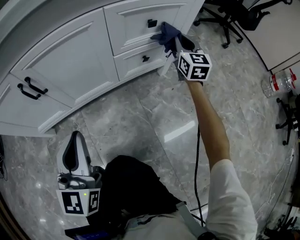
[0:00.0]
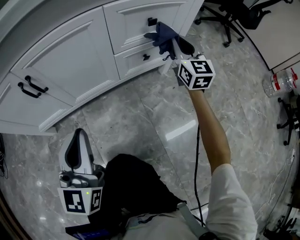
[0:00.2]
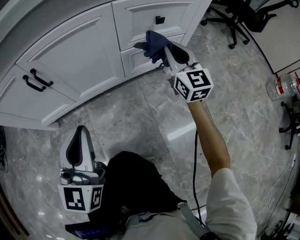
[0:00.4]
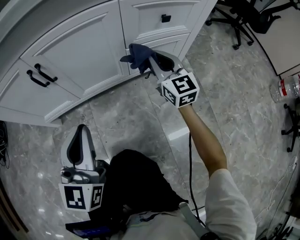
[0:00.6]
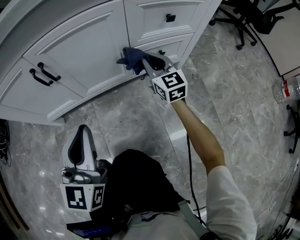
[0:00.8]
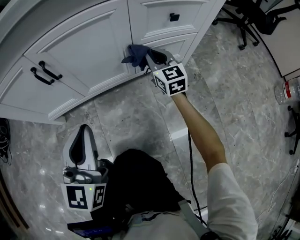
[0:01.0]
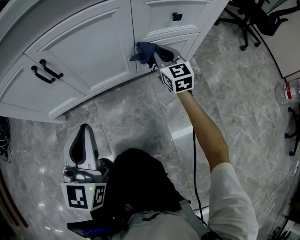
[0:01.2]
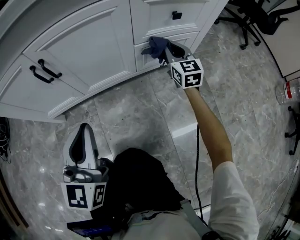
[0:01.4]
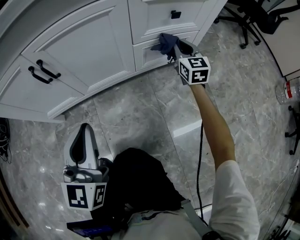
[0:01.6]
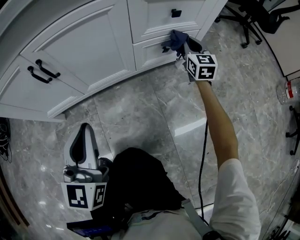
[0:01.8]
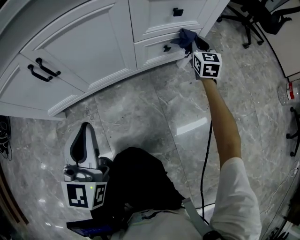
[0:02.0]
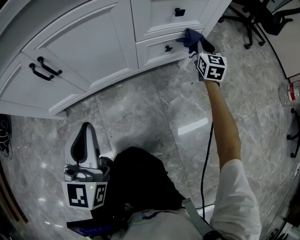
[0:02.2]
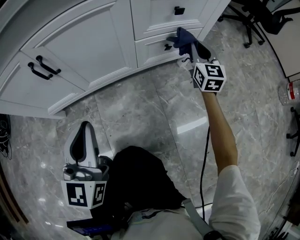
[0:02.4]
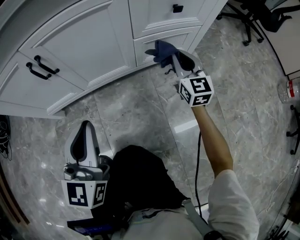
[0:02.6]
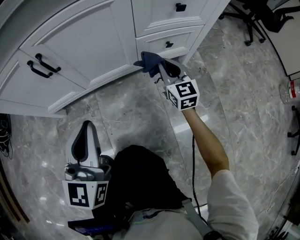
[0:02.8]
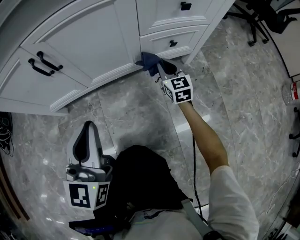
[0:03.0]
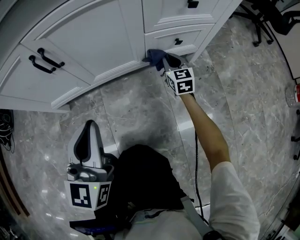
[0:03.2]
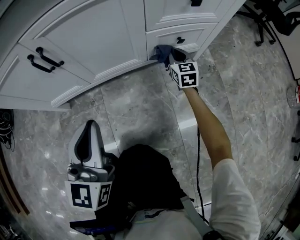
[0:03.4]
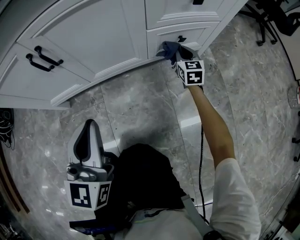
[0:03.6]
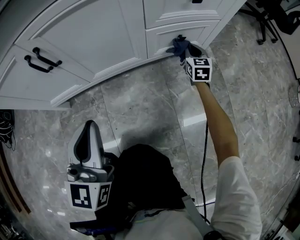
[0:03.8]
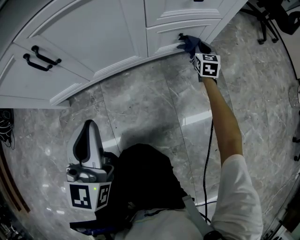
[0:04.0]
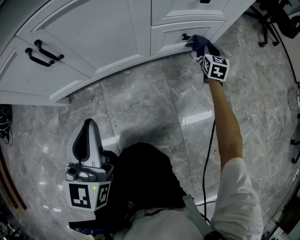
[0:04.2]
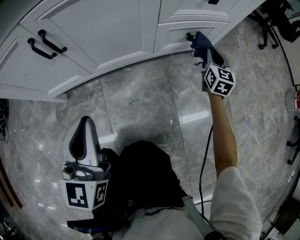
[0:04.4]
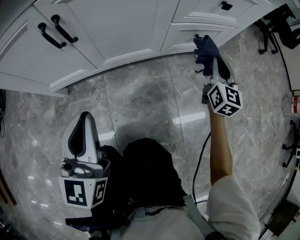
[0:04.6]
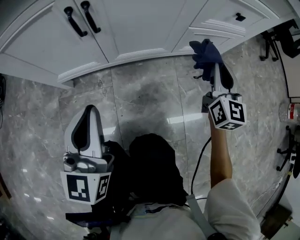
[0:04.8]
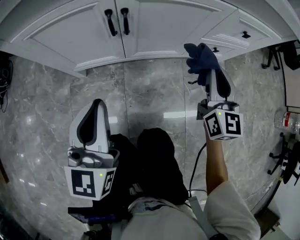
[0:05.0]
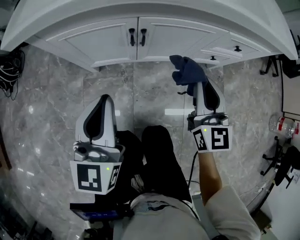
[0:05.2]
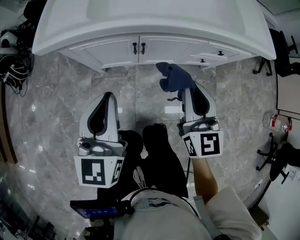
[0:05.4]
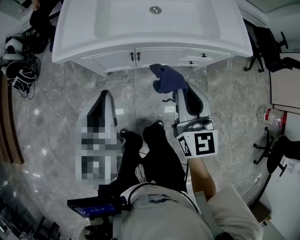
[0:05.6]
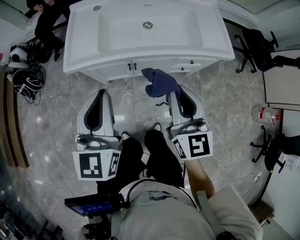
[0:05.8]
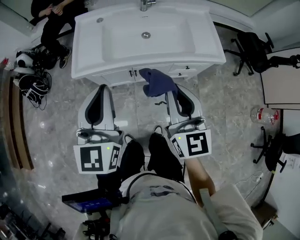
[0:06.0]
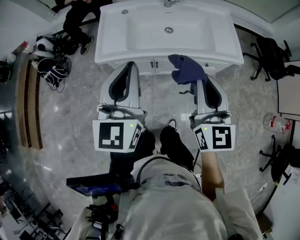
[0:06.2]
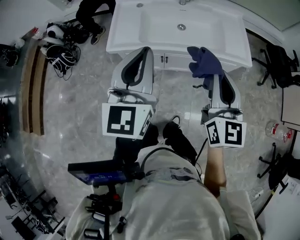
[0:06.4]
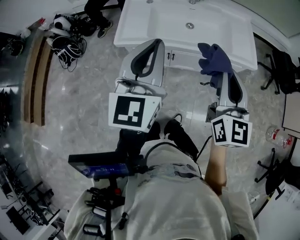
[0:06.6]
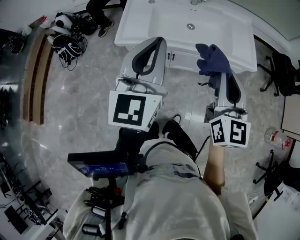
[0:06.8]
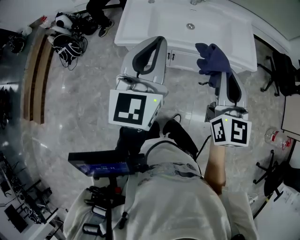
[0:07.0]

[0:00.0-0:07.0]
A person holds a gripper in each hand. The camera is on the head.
0:00.0 to 0:01.4: The right gripper goes about 15 cm to the left and downward.
0:01.4 to 0:02.8: The right gripper shifts some 10 cm backward and downward, and moves some 15 cm to the right and comes back.
0:02.8 to 0:04.2: The right gripper is displaced to the right, forward and downward by approximately 20 cm, and rotates some 30 degrees.
0:04.2 to 0:05.6: The left gripper shifts some 50 cm upward, while the right gripper shifts approximately 80 cm upward, to the left and backward, and changes its angle by some 30 degrees.
0:05.6 to 0:07.0: The grippers both shift upward by roughly 25 cm.

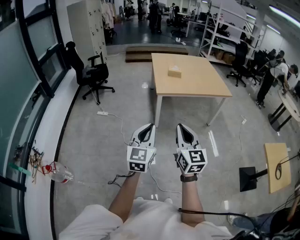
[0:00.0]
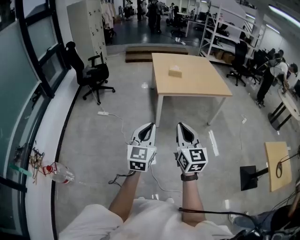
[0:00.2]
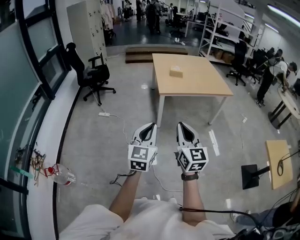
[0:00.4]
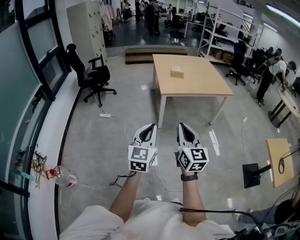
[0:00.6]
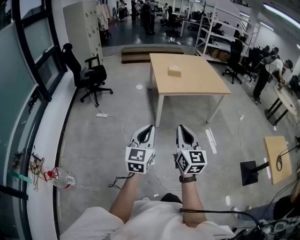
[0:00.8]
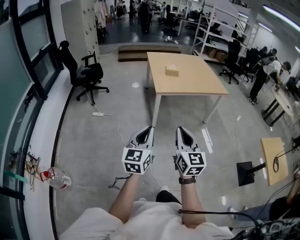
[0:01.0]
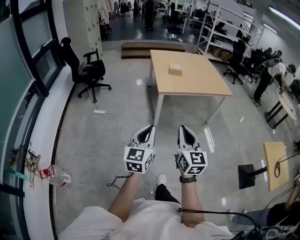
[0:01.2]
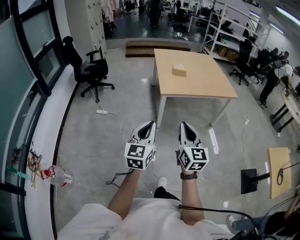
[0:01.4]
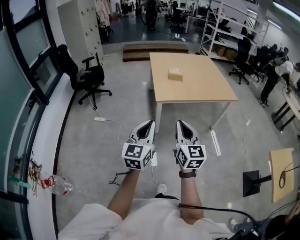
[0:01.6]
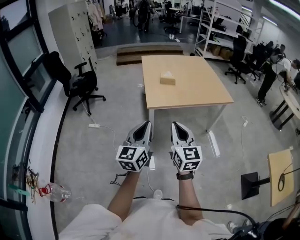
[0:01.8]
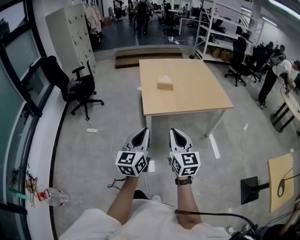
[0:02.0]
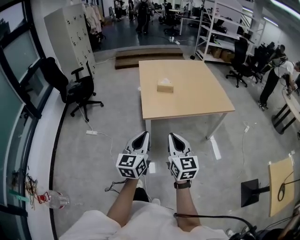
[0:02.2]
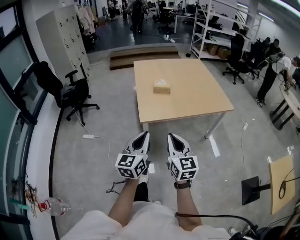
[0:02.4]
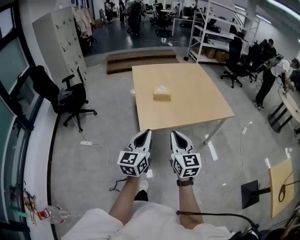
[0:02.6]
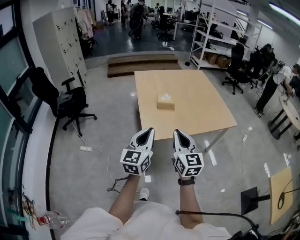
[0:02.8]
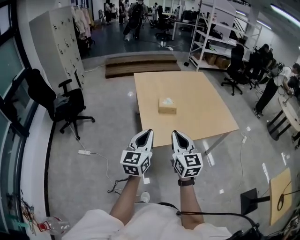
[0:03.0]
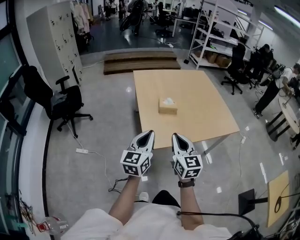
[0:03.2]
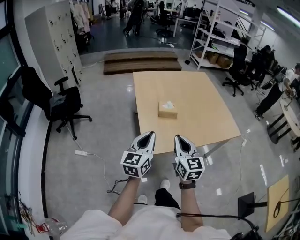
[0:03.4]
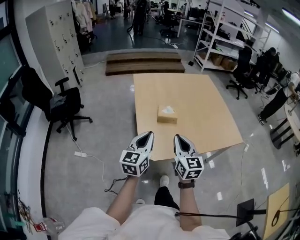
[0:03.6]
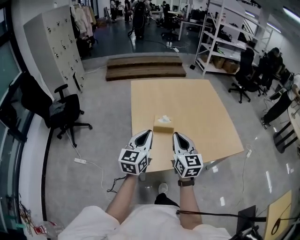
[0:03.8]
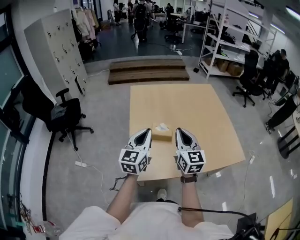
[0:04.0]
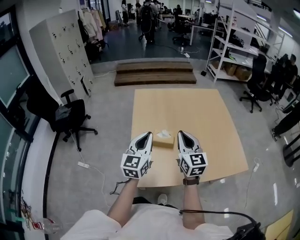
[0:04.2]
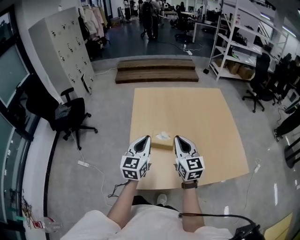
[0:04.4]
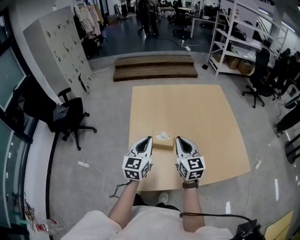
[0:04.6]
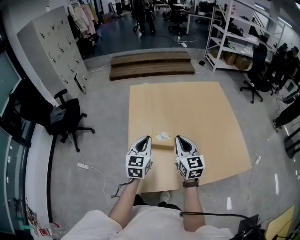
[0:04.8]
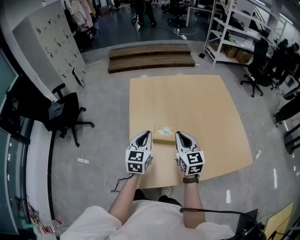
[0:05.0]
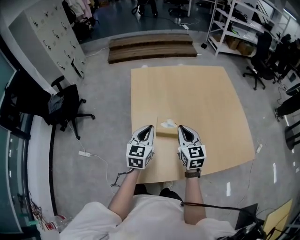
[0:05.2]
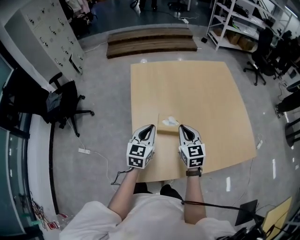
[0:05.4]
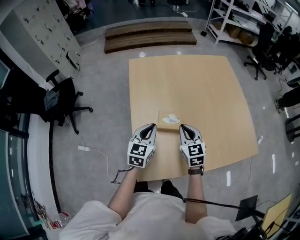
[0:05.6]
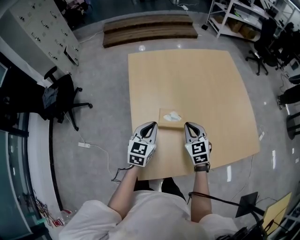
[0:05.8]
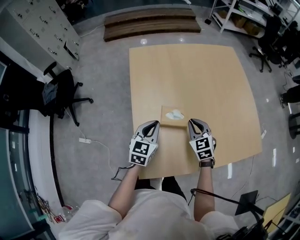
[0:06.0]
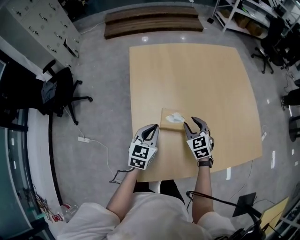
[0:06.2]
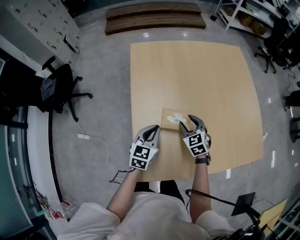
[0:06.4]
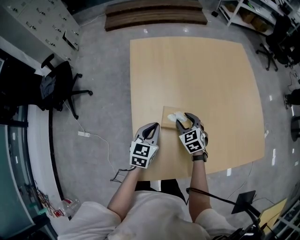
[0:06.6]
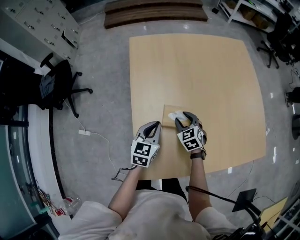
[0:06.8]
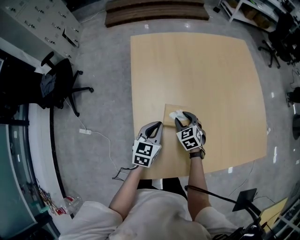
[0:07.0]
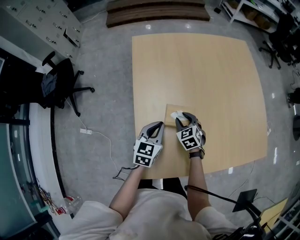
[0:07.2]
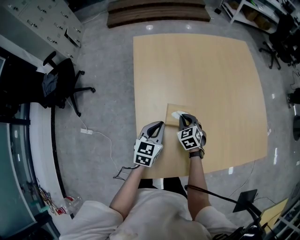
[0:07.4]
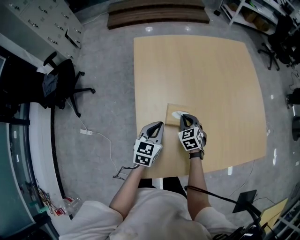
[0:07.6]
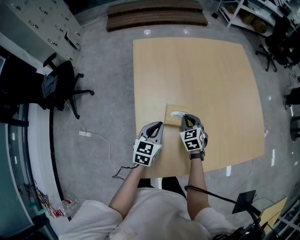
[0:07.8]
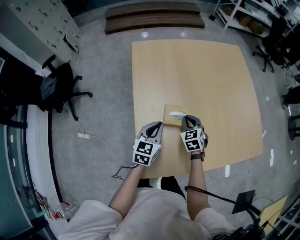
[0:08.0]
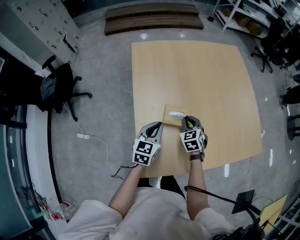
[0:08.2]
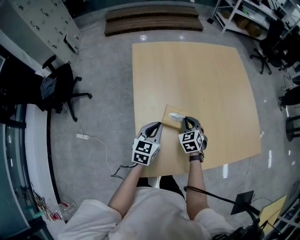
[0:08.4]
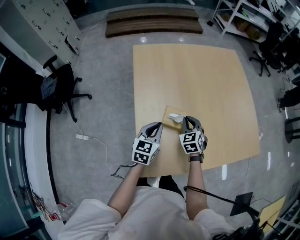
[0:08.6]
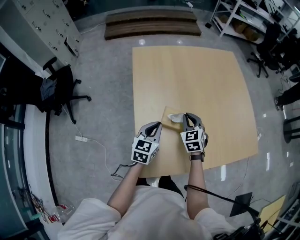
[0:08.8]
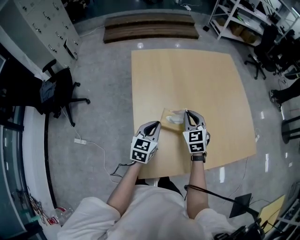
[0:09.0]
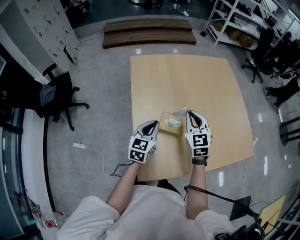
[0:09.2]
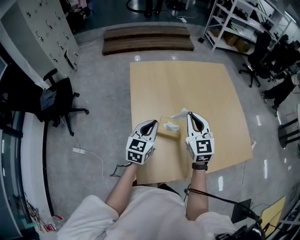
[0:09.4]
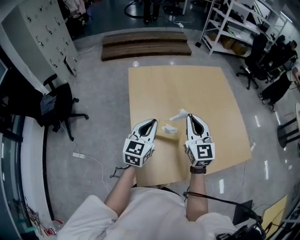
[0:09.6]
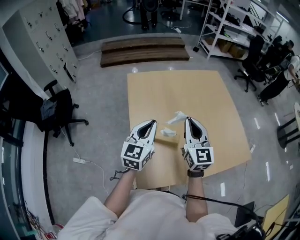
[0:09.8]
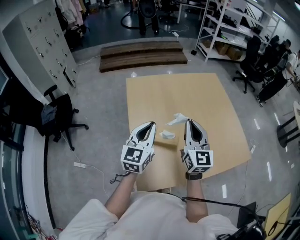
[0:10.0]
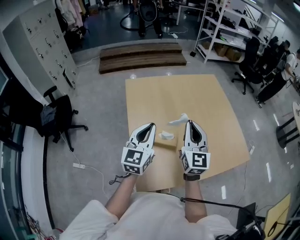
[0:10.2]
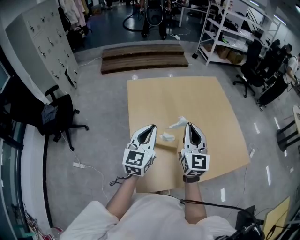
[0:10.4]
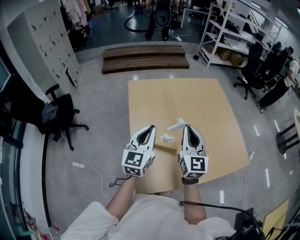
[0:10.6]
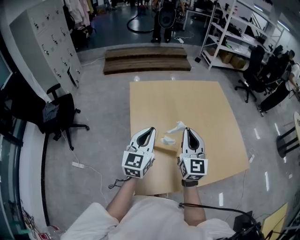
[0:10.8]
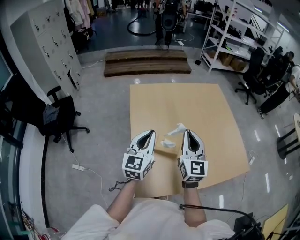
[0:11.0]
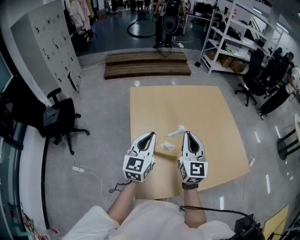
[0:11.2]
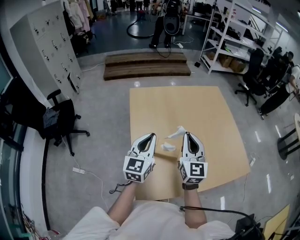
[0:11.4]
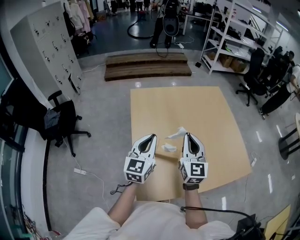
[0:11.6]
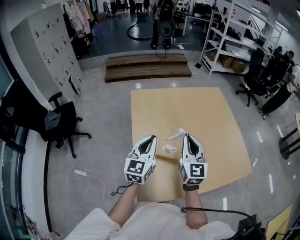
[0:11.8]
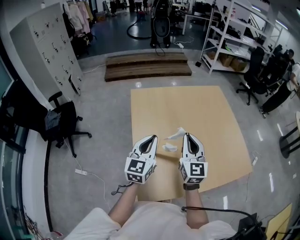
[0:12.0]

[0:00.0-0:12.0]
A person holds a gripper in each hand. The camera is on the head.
0:00.0 to 0:01.6: The two grippers go some 15 cm forward.
0:01.6 to 0:03.0: The grippers both shift forward by approximately 40 cm.
0:03.0 to 0:04.4: The grippers both shift forward by roughly 35 cm.
0:04.4 to 0:06.0: The grippers both shift downward and forward by some 20 cm. The right gripper turns by about 30 degrees; the left gripper changes its angle by approximately 20 degrees.
0:06.0 to 0:07.6: The right gripper travels downward and to the left by some 10 cm, and opens, then closes once more; the left gripper is displaced downward by approximately 5 cm.
0:07.6 to 0:09.0: The left gripper shifts by some 5 cm. The right gripper is displaced upward by roughly 15 cm.
0:09.0 to 0:10.4: The right gripper heads upward and backward, covering some 20 cm, and tilts its fingers some 30 degrees upward, while the left gripper shifts roughly 15 cm upward, and changes its angle by about 20 degrees.
0:10.4 to 0:12.0: The grippers move only a little.

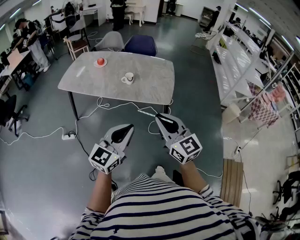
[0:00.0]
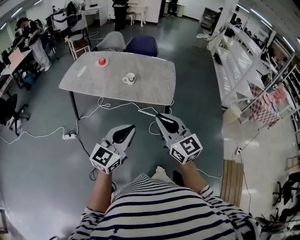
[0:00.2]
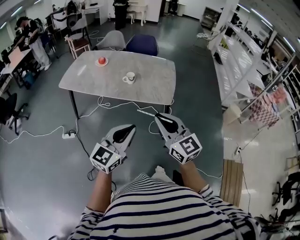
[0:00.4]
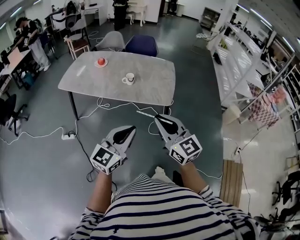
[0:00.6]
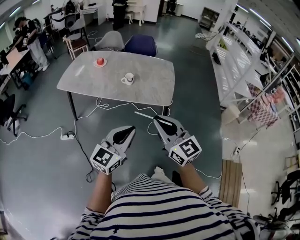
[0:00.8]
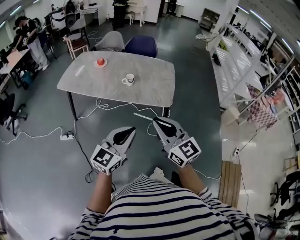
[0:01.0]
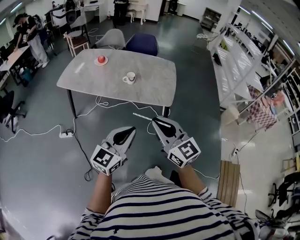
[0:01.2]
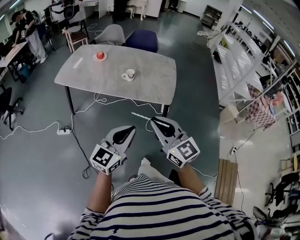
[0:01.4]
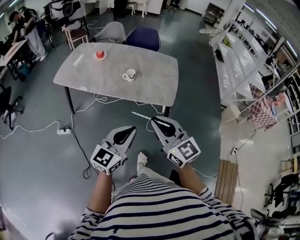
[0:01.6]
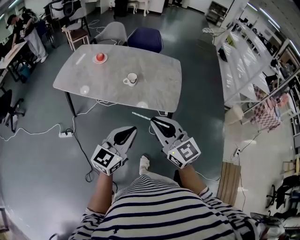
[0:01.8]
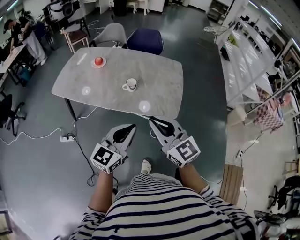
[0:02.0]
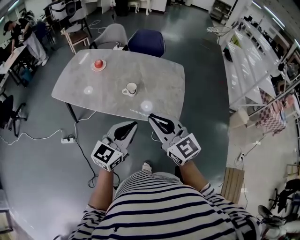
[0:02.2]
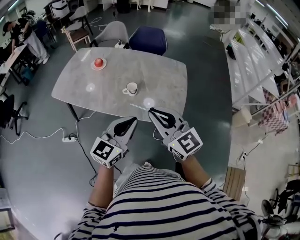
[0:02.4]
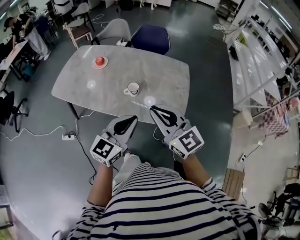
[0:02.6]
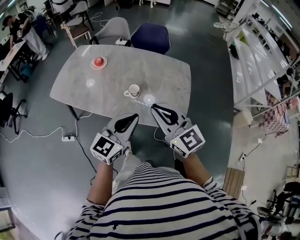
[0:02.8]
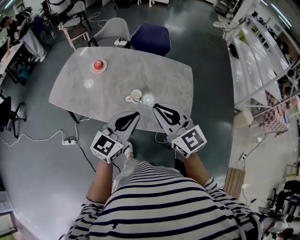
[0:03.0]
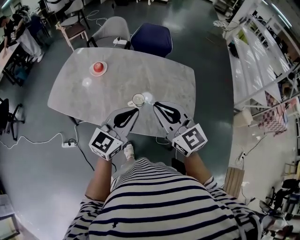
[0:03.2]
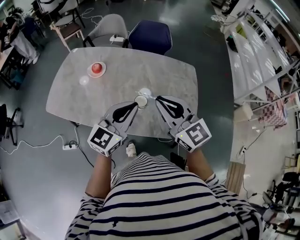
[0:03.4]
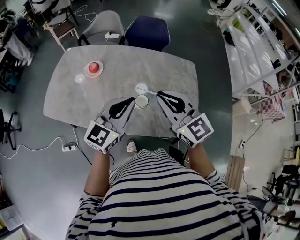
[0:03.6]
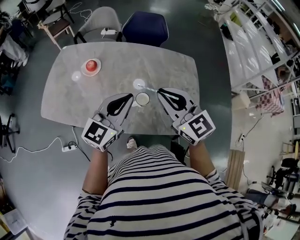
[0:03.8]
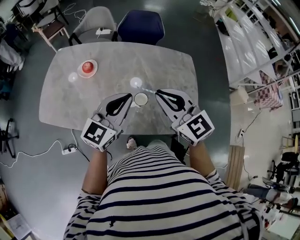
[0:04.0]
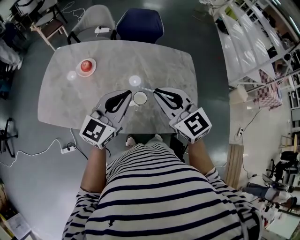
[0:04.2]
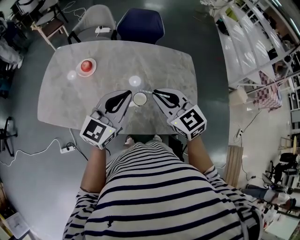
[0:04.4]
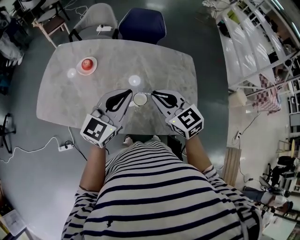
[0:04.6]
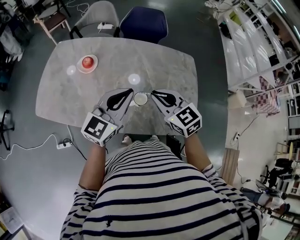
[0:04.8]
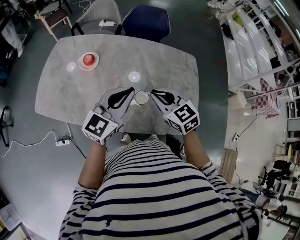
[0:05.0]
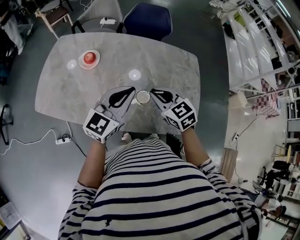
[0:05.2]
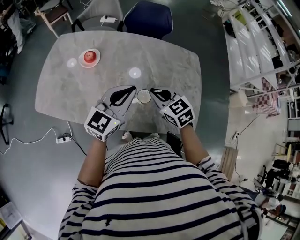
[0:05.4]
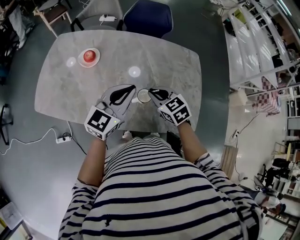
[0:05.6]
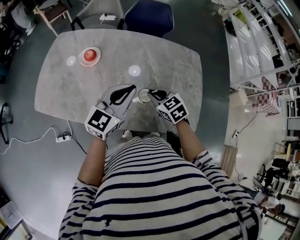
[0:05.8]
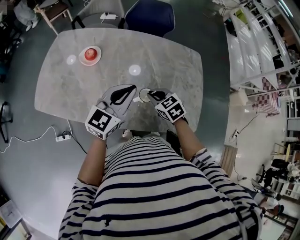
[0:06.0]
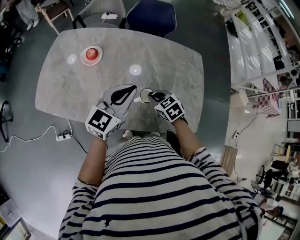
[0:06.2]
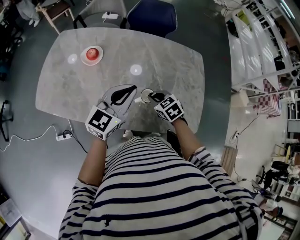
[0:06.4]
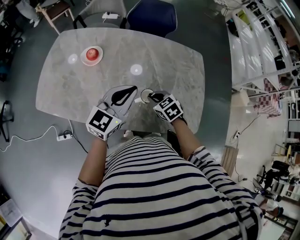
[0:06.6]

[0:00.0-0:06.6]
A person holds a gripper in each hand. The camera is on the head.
0:00.0 to 0:01.6: The two grippers go approximately 5 cm forward.
0:01.6 to 0:03.2: The two grippers go approximately 40 cm forward.
0:03.2 to 0:05.0: The left gripper is displaced forward and to the left by roughly 15 cm; the right gripper goes approximately 20 cm downward and forward, and changes its angle by about 30 degrees.
0:05.0 to 0:06.6: The right gripper is displaced downward by some 15 cm, and swivels roughly 20 degrees.